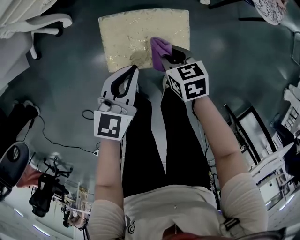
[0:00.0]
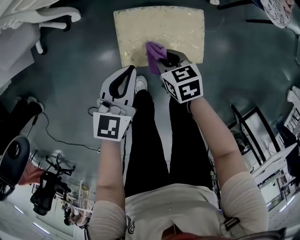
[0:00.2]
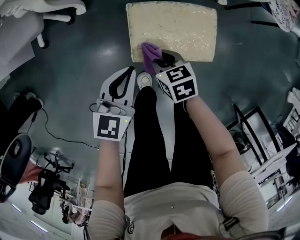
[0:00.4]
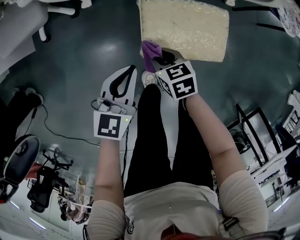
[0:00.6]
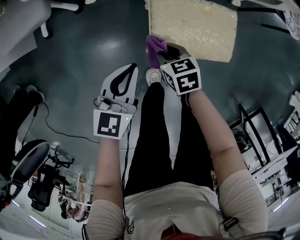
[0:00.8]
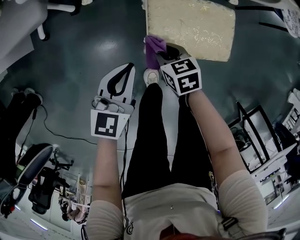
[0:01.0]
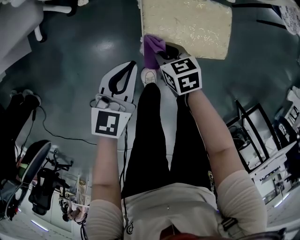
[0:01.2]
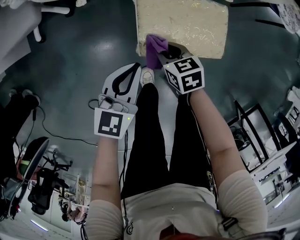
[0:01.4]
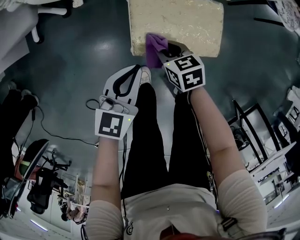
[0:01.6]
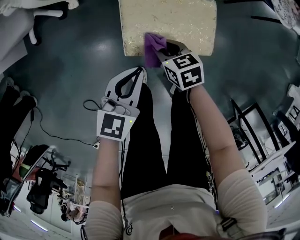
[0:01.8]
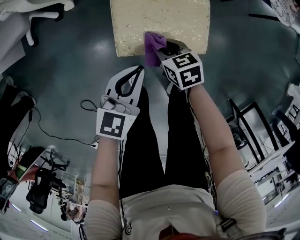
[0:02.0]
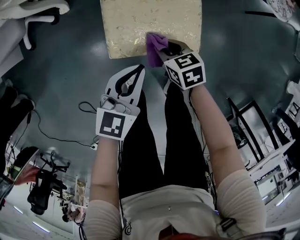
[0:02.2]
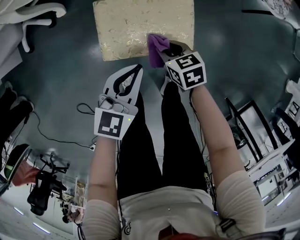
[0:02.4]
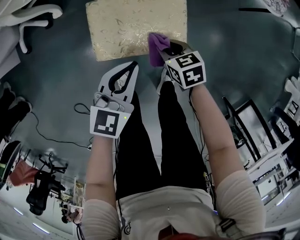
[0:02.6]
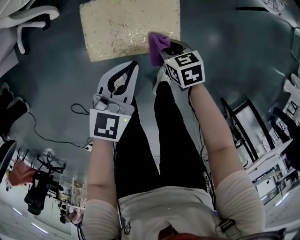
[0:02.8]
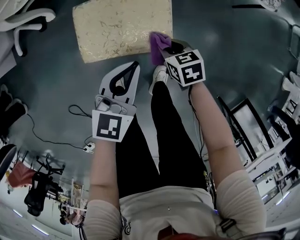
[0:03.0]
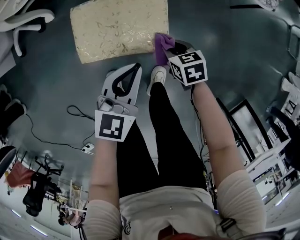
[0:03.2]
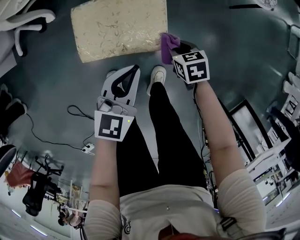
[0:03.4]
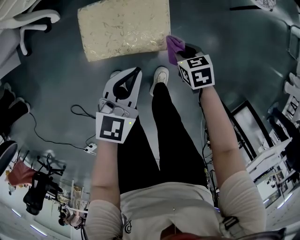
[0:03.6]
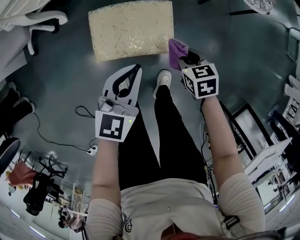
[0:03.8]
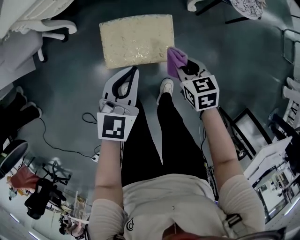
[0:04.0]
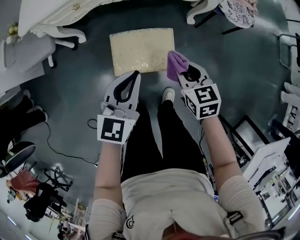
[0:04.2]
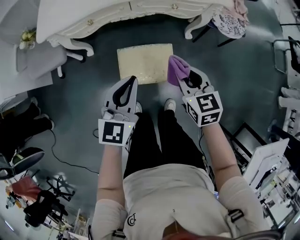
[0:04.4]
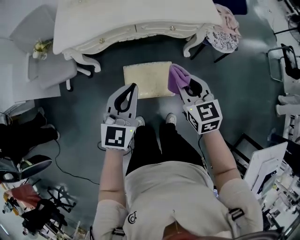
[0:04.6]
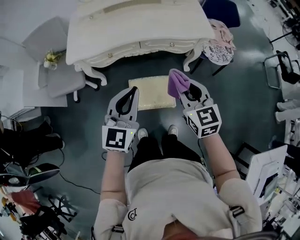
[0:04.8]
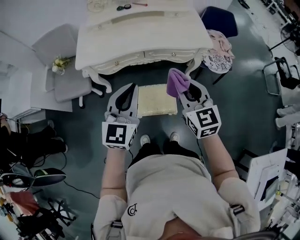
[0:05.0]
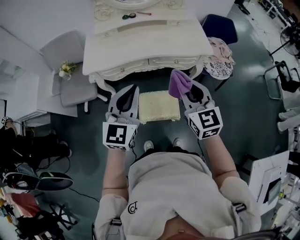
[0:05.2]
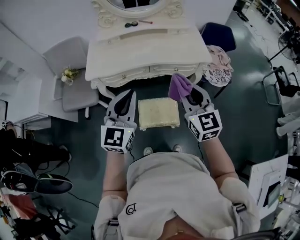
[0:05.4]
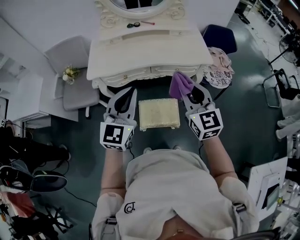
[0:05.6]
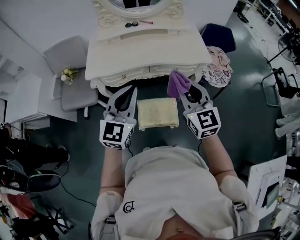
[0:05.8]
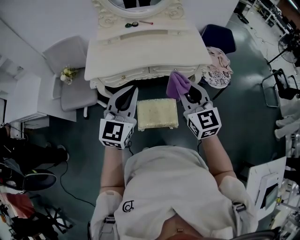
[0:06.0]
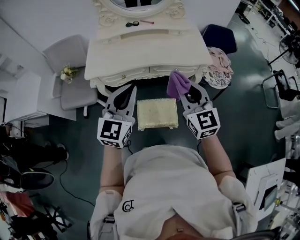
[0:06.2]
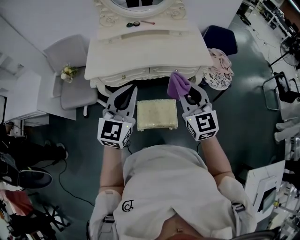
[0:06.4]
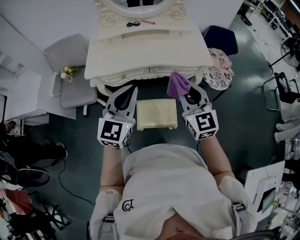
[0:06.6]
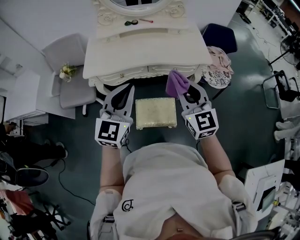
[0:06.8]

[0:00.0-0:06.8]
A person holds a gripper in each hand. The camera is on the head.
0:00.0 to 0:01.4: The left gripper goes roughly 15 cm to the left. The right gripper goes some 15 cm to the left and downward.
0:01.4 to 0:02.8: The two grippers go some 20 cm to the right.
0:02.8 to 0:04.0: The two grippers go approximately 15 cm upward.
0:04.0 to 0:05.4: Both grippers travel together upward, about 50 cm. The left gripper changes its angle by about 20 degrees; the right gripper angles its fingers upward, by some 40 degrees.
0:05.4 to 0:06.8: There are only small adjustments of the grippers.

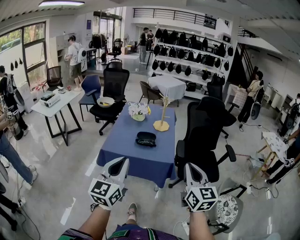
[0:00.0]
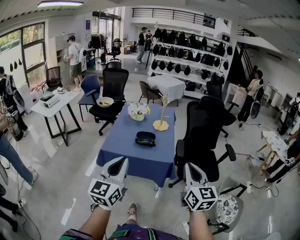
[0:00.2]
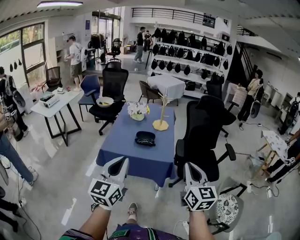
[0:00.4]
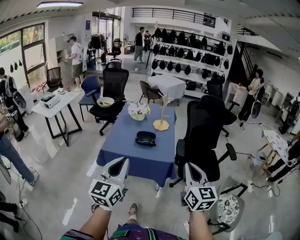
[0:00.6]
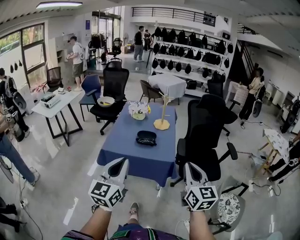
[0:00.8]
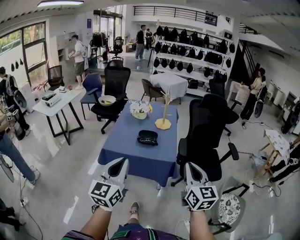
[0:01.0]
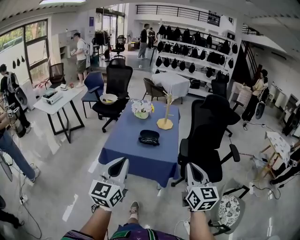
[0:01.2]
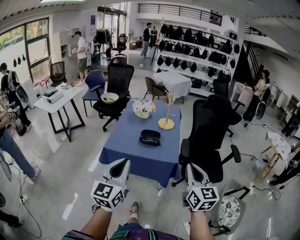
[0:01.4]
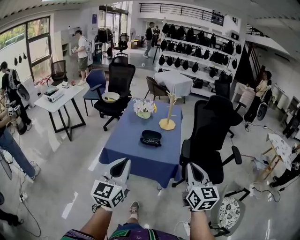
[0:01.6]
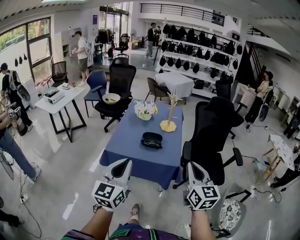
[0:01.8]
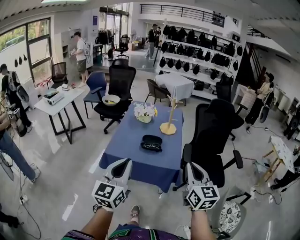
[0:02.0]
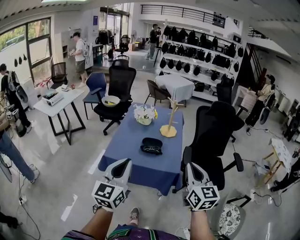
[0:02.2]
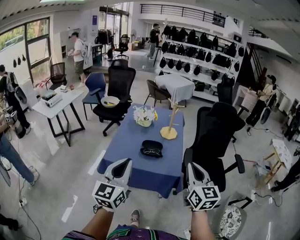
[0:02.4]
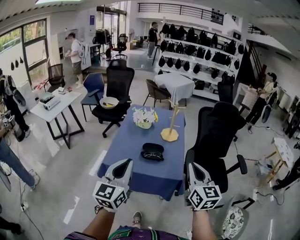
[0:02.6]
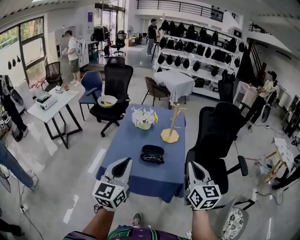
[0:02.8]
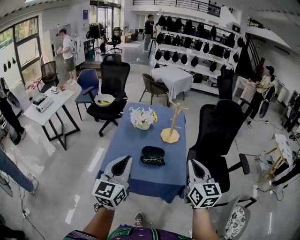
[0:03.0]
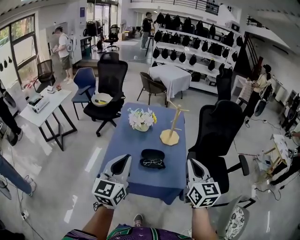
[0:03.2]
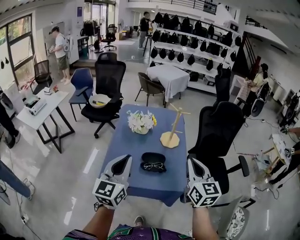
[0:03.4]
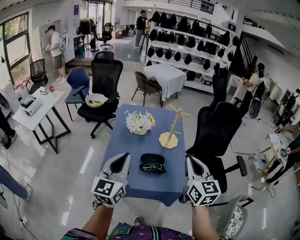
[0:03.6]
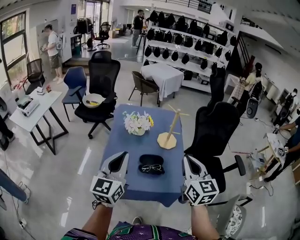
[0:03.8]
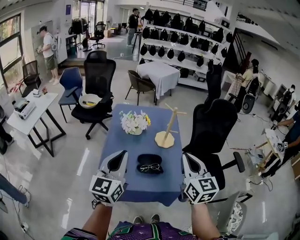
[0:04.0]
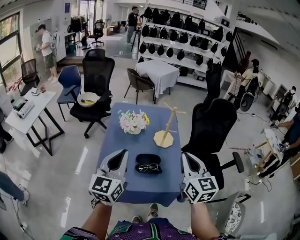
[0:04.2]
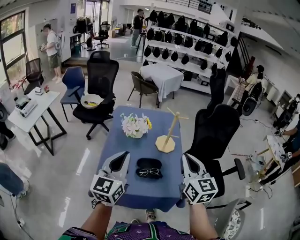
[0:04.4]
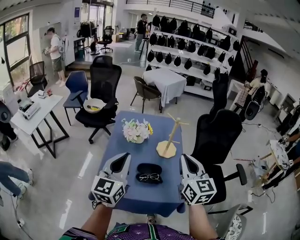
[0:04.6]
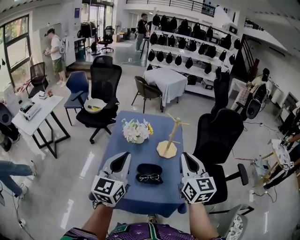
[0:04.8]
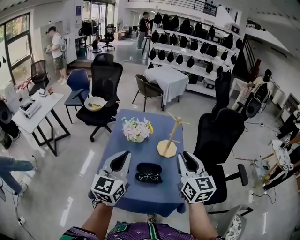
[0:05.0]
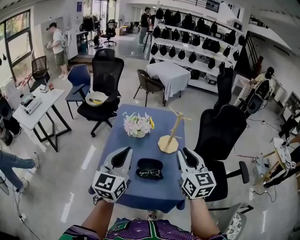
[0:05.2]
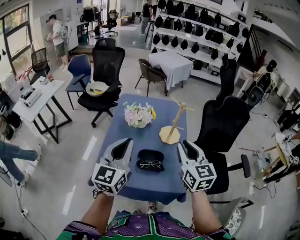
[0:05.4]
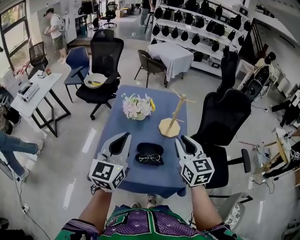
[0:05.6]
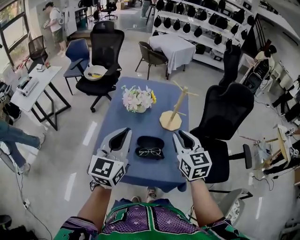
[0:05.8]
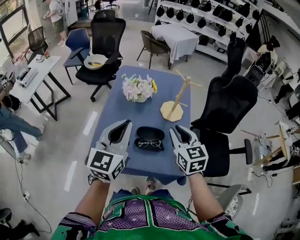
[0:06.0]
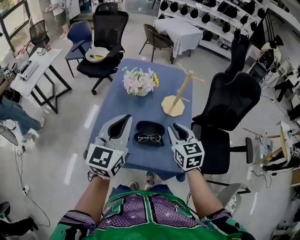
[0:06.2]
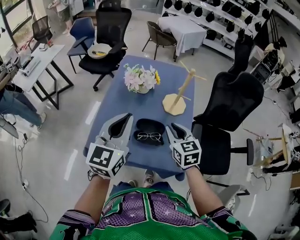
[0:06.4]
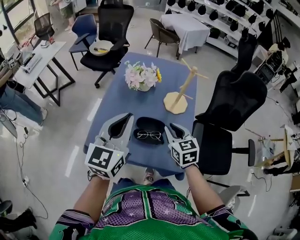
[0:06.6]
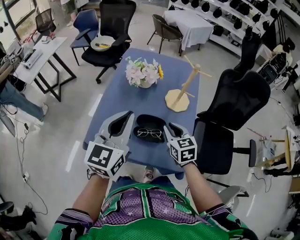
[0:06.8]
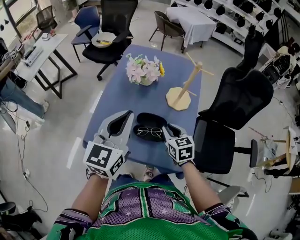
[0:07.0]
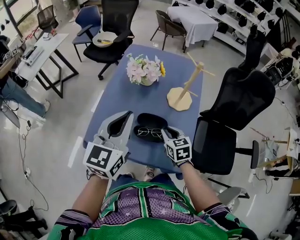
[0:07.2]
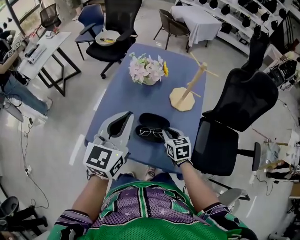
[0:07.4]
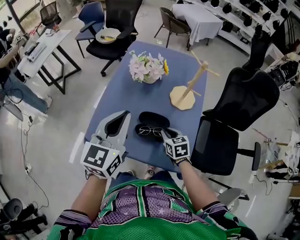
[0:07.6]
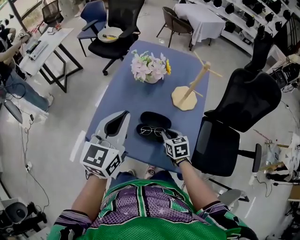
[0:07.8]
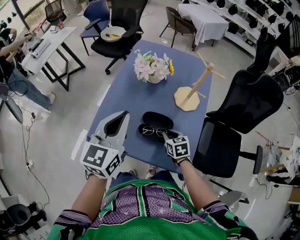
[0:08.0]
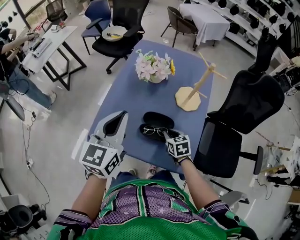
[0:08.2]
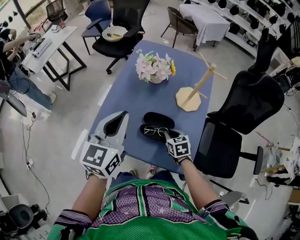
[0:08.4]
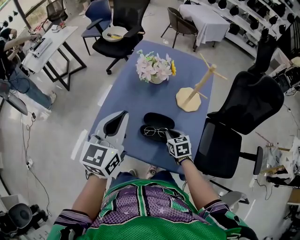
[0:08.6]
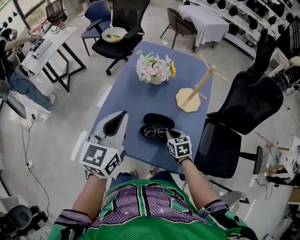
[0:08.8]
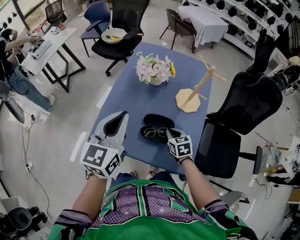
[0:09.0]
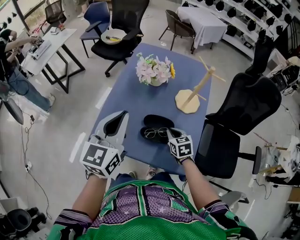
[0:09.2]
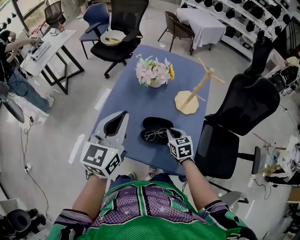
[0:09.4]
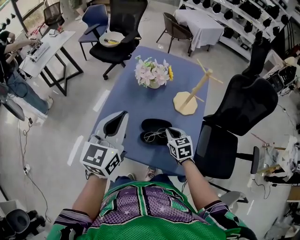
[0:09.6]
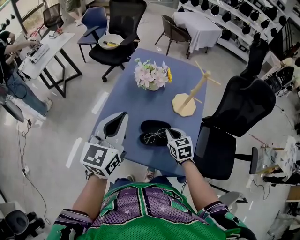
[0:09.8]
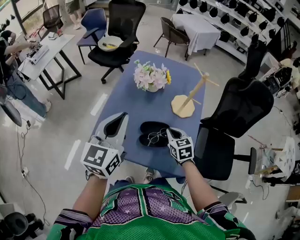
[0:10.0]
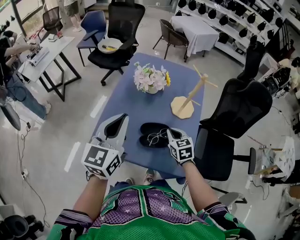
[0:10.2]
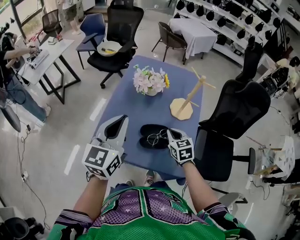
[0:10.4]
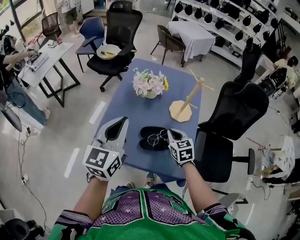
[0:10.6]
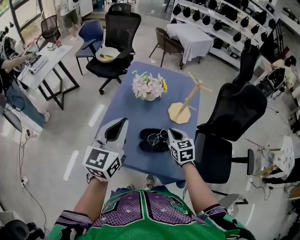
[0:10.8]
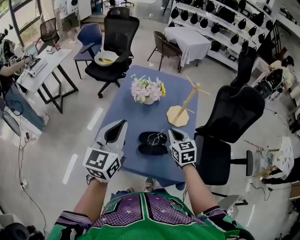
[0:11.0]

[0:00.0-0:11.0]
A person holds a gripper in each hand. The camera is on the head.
0:00.0 to 0:01.6: The right gripper changes place by about 5 cm.
0:01.6 to 0:03.2: The two grippers go about 25 cm forward.
0:03.2 to 0:04.8: Both grippers move forward, roughly 10 cm.
0:04.8 to 0:06.2: The left gripper travels downward by roughly 5 cm. The right gripper heads downward, covering some 20 cm, and changes its angle by some 20 degrees.
0:06.2 to 0:07.8: The right gripper heads downward, covering some 20 cm, and changes its angle by roughly 30 degrees; the left gripper moves some 5 cm.
0:07.8 to 0:09.4: There are only small adjustments of the grippers.
0:09.4 to 0:11.0: The right gripper heads upward, covering approximately 15 cm.

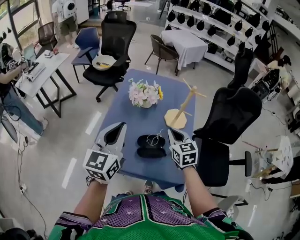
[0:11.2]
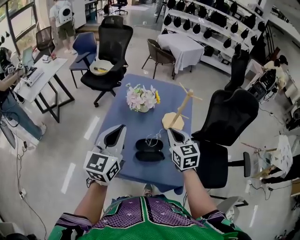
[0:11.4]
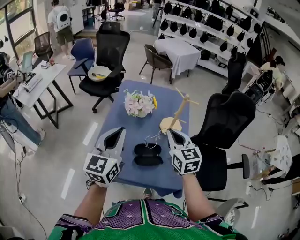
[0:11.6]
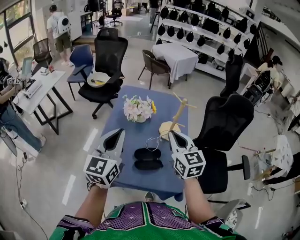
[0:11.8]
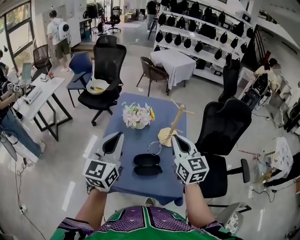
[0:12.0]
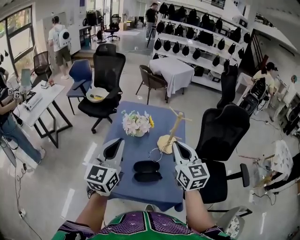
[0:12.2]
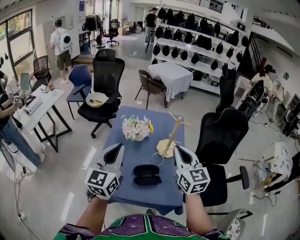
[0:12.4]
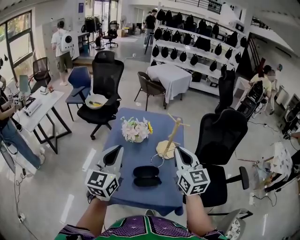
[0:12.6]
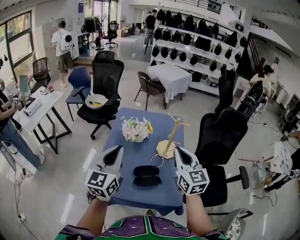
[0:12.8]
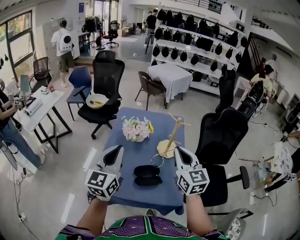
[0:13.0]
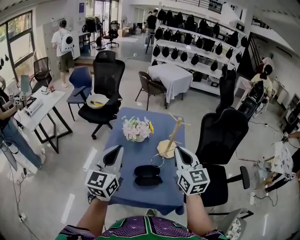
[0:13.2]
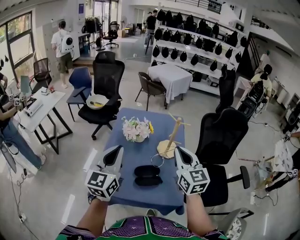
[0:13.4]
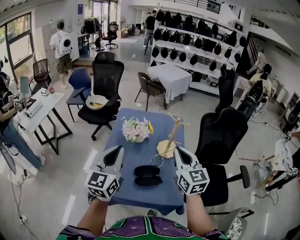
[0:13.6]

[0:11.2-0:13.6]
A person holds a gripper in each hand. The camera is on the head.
0:11.2 to 0:12.4: The left gripper is displaced upward by about 5 cm; the right gripper is displaced upward by some 15 cm, and turns by about 20 degrees.
0:12.4 to 0:13.6: The two grippers keep their place.

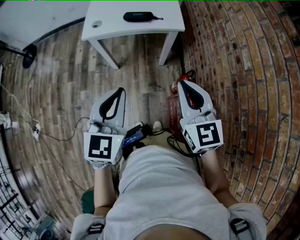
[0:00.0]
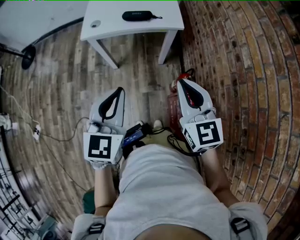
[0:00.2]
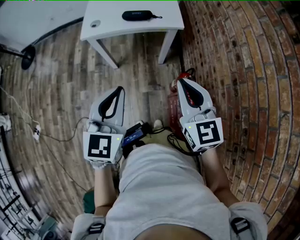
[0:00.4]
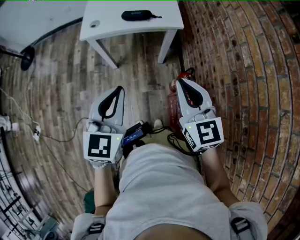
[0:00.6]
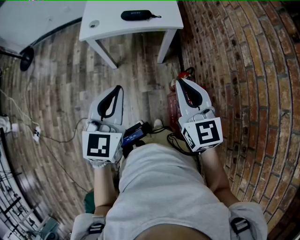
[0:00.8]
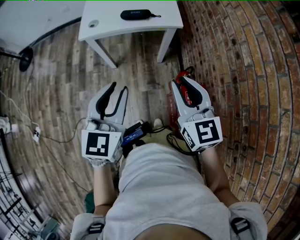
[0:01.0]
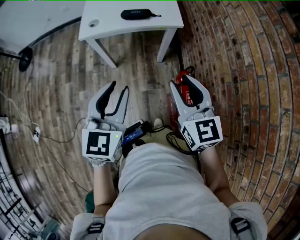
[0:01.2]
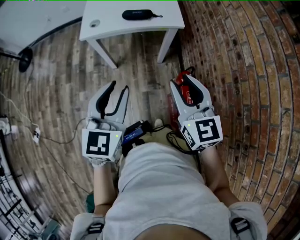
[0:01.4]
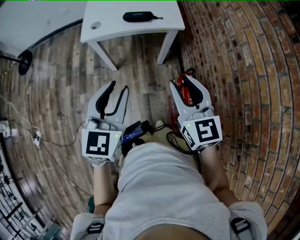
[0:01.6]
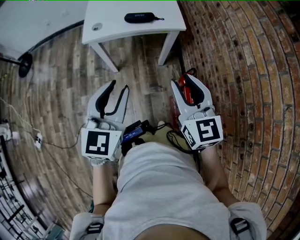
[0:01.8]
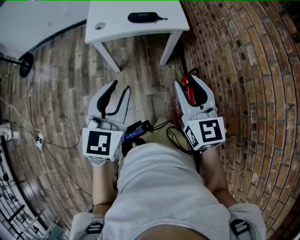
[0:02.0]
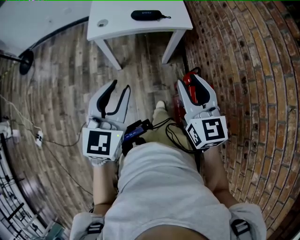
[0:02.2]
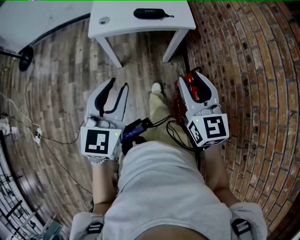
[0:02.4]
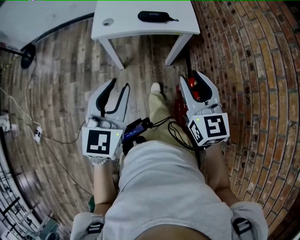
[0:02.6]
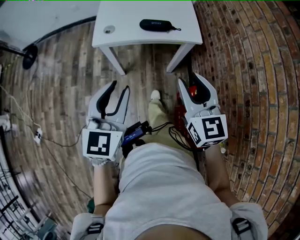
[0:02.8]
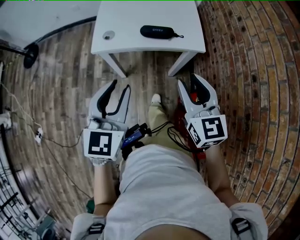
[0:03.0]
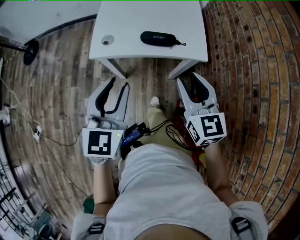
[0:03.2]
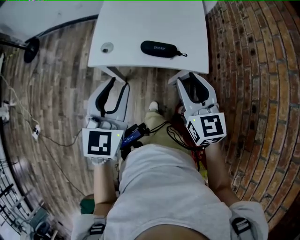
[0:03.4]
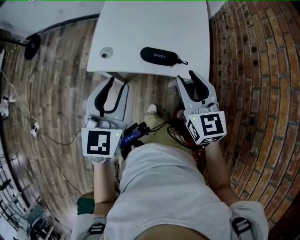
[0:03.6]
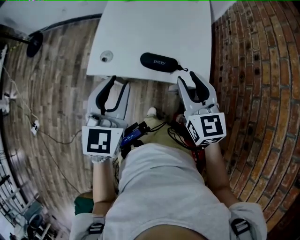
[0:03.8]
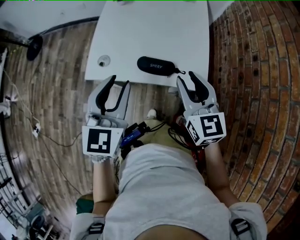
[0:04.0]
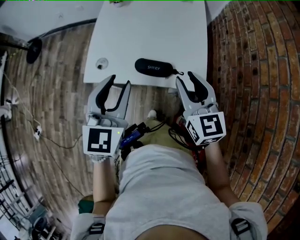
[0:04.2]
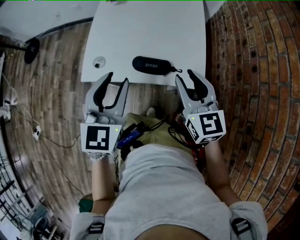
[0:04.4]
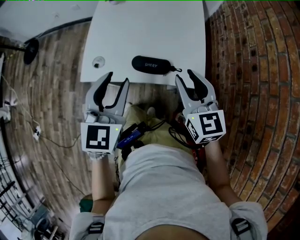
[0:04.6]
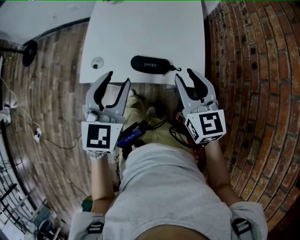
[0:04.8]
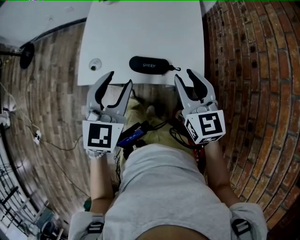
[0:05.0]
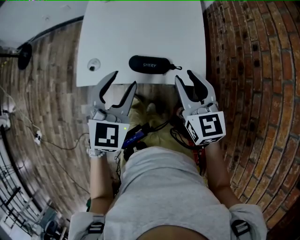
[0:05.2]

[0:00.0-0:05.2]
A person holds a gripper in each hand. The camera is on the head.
0:00.0 to 0:01.8: The left gripper ends up about 5 cm from where it was, and opens. Meanwhile the right gripper opens.
0:01.8 to 0:03.4: The grippers both shift forward by some 25 cm.
0:03.4 to 0:05.2: The left gripper is displaced forward and to the right by about 10 cm, while the right gripper shifts some 10 cm forward.
